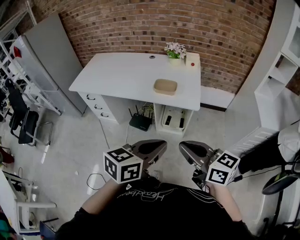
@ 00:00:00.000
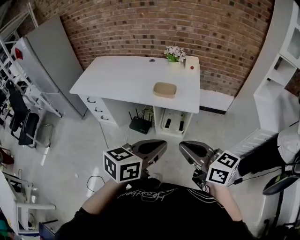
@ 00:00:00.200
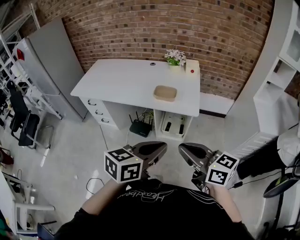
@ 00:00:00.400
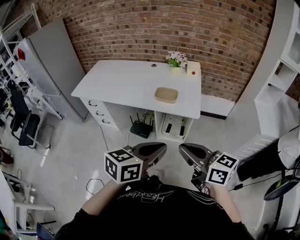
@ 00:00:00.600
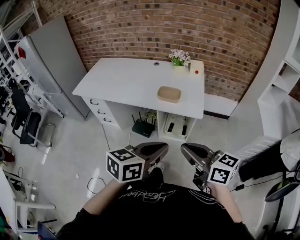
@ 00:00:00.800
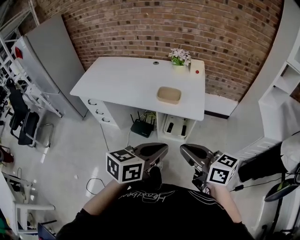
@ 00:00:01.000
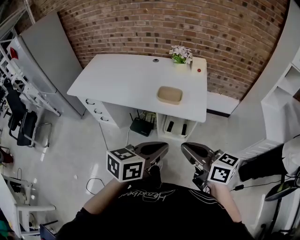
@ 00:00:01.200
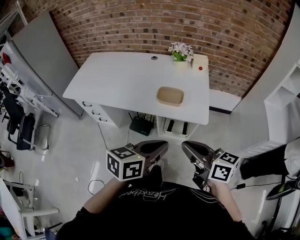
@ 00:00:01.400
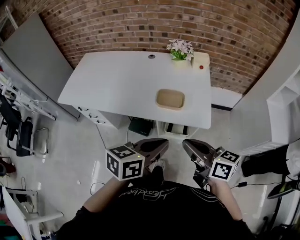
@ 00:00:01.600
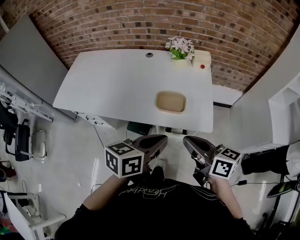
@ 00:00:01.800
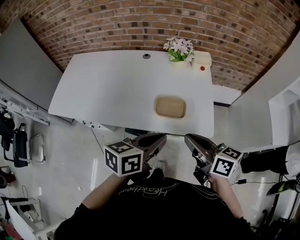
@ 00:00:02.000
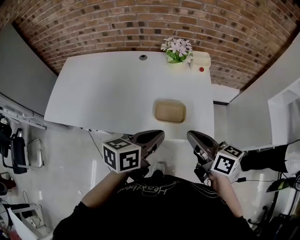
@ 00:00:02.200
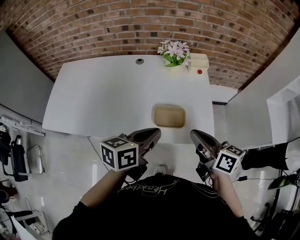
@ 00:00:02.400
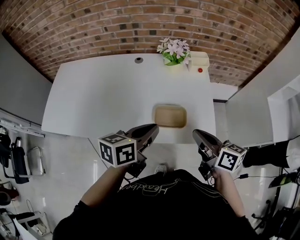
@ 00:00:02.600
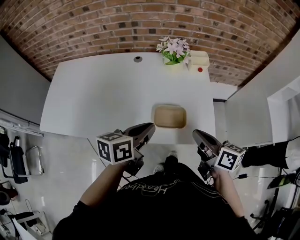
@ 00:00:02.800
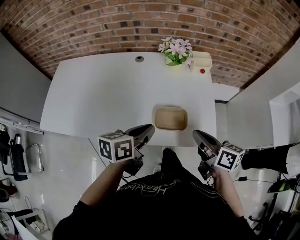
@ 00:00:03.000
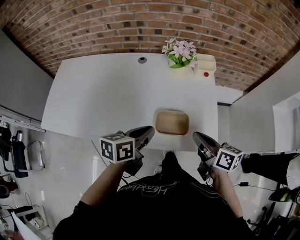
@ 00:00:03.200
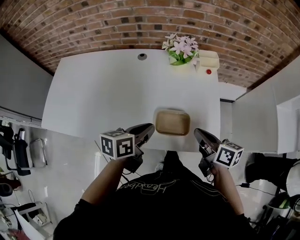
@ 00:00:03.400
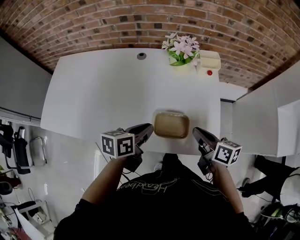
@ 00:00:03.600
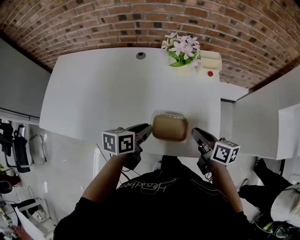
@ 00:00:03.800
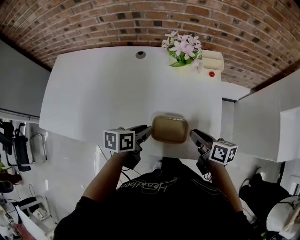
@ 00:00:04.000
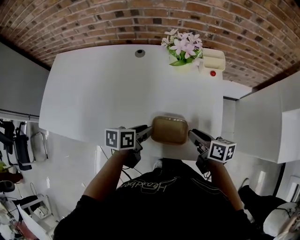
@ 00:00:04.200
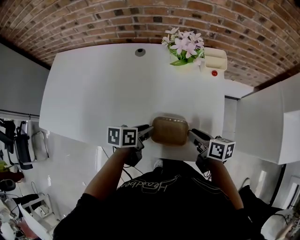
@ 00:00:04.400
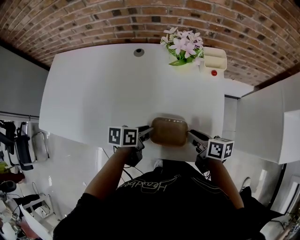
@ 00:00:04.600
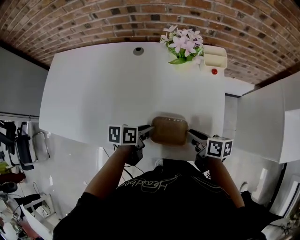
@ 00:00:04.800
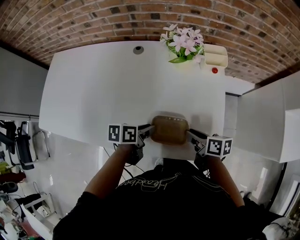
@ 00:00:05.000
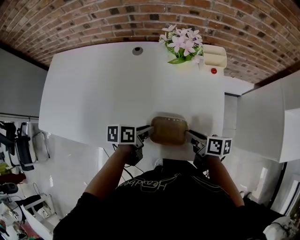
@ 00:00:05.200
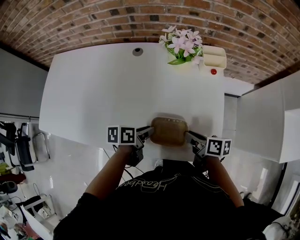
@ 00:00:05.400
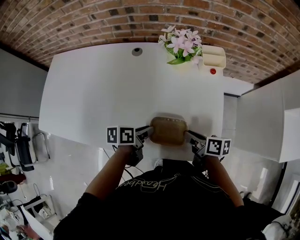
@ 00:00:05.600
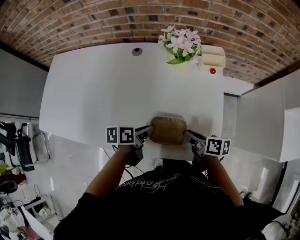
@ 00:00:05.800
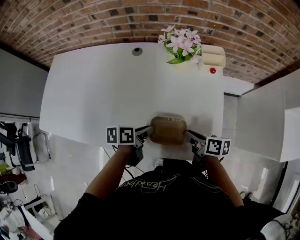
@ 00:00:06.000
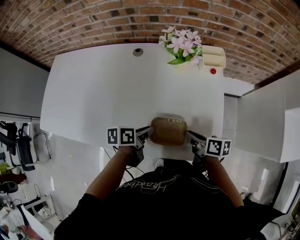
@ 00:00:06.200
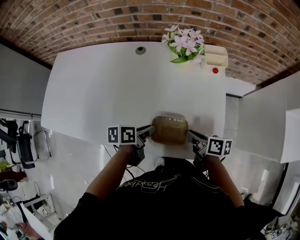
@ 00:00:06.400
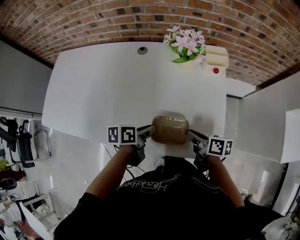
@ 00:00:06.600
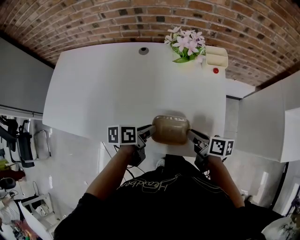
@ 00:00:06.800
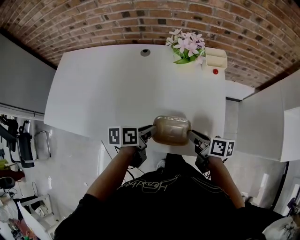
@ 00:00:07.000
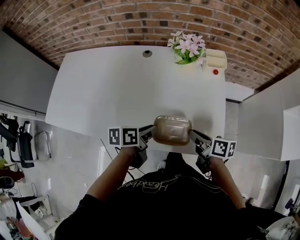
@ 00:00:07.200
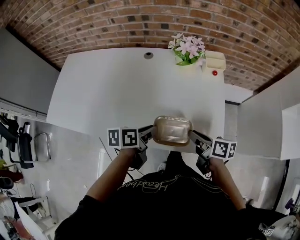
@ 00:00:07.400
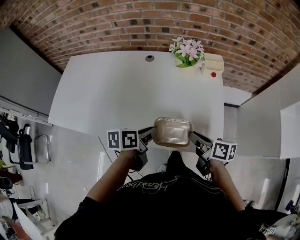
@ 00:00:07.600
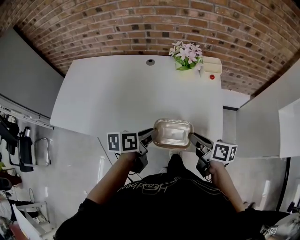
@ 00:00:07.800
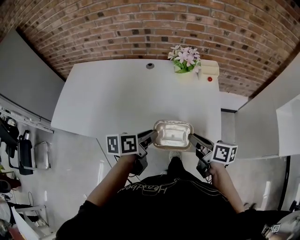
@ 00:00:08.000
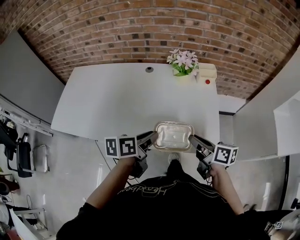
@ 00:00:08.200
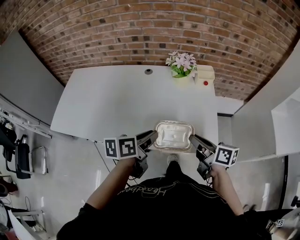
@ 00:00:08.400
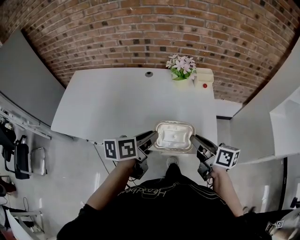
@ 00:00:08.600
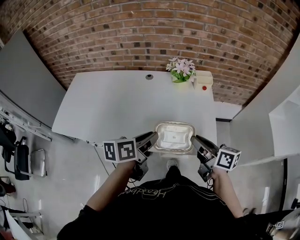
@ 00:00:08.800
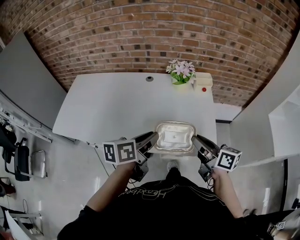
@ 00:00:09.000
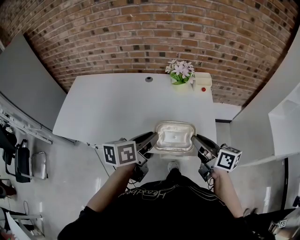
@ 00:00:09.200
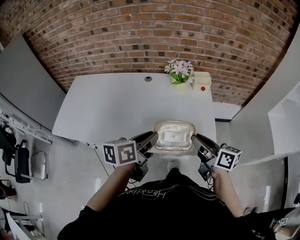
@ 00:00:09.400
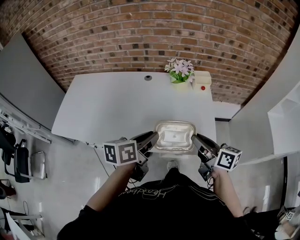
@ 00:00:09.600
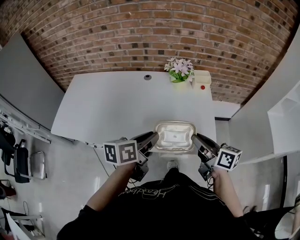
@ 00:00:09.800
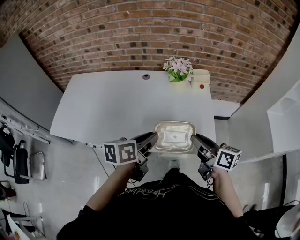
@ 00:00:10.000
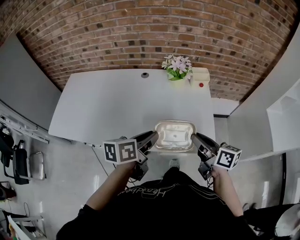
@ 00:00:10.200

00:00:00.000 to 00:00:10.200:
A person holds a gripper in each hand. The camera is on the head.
00:00:00.000 to 00:00:01.400: The two grippers go roughly 15 cm forward.
00:00:01.400 to 00:00:03.000: Both grippers travel together forward, roughly 25 cm. The right gripper rotates some 30 degrees.
00:00:03.000 to 00:00:04.400: The grippers both shift downward and forward by approximately 15 cm. The right gripper opens up. Meanwhile the left gripper turns by some 20 degrees, and opens up.
00:00:04.400 to 00:00:05.800: The grippers make only small movements.
00:00:05.800 to 00:00:07.200: The left gripper goes approximately 5 cm upward. The right gripper changes place by some 5 cm.
00:00:07.200 to 00:00:08.800: Both grippers move upward and backward, some 15 cm. The right gripper changes its angle by approximately 20 degrees.
00:00:08.800 to 00:00:10.200: The grippers stay close to where they were, moving slightly.

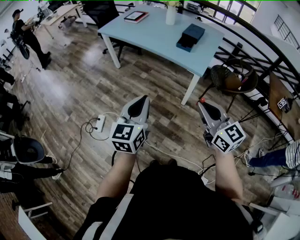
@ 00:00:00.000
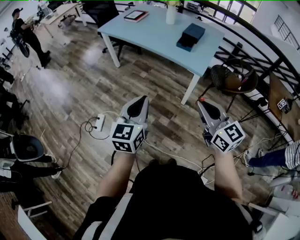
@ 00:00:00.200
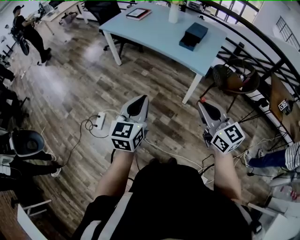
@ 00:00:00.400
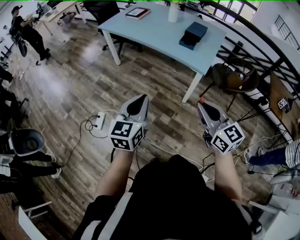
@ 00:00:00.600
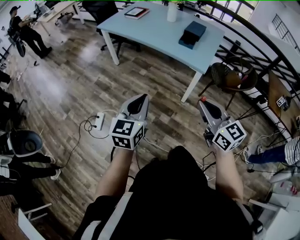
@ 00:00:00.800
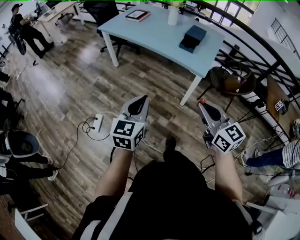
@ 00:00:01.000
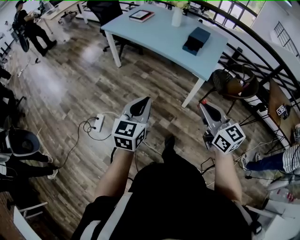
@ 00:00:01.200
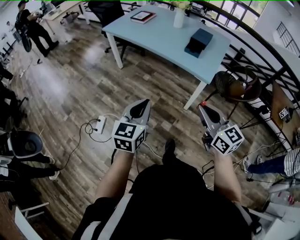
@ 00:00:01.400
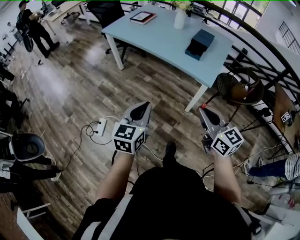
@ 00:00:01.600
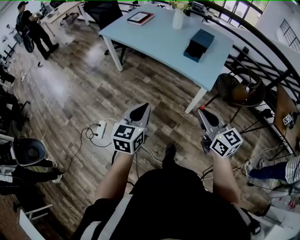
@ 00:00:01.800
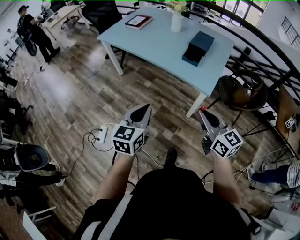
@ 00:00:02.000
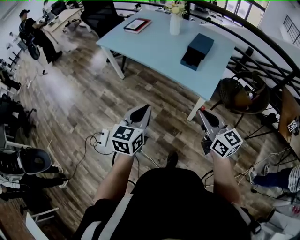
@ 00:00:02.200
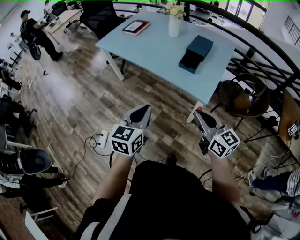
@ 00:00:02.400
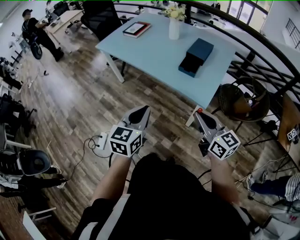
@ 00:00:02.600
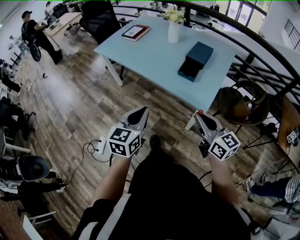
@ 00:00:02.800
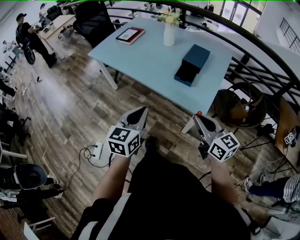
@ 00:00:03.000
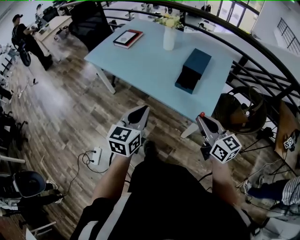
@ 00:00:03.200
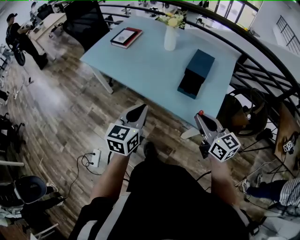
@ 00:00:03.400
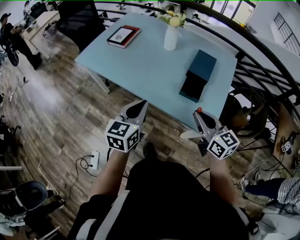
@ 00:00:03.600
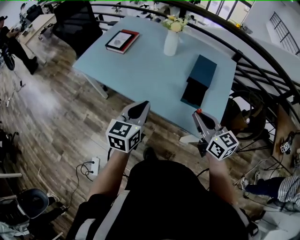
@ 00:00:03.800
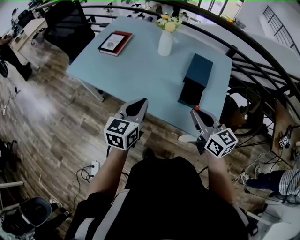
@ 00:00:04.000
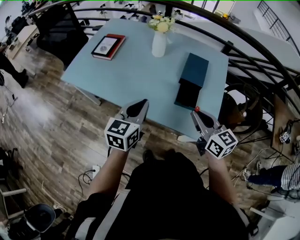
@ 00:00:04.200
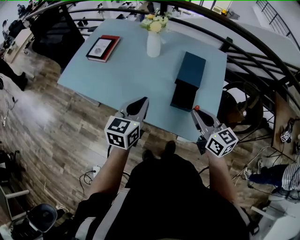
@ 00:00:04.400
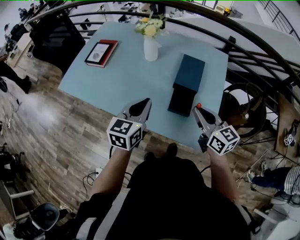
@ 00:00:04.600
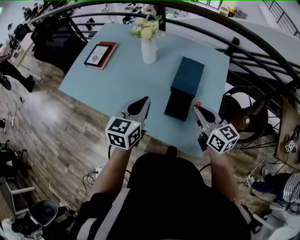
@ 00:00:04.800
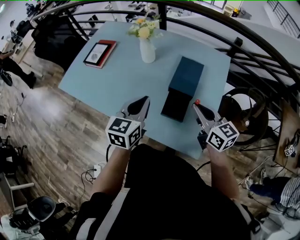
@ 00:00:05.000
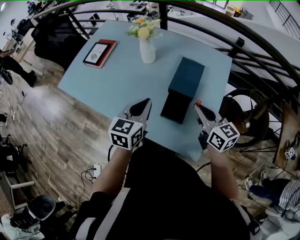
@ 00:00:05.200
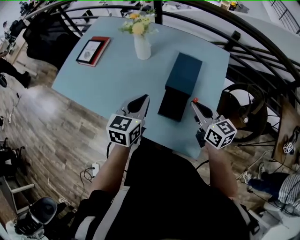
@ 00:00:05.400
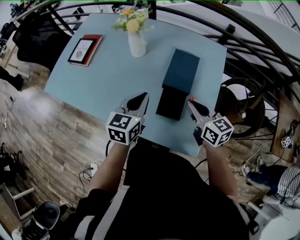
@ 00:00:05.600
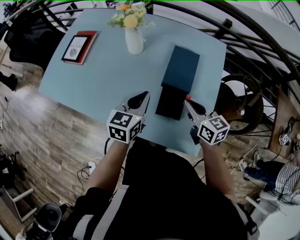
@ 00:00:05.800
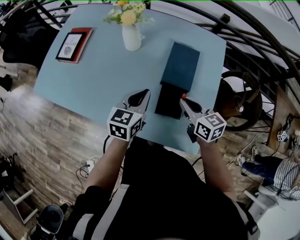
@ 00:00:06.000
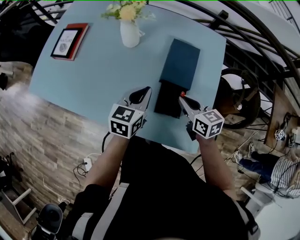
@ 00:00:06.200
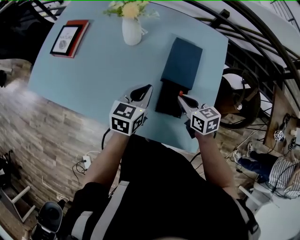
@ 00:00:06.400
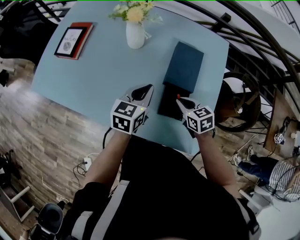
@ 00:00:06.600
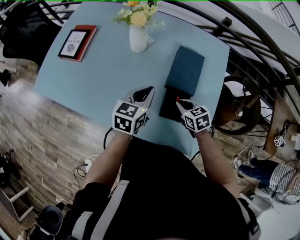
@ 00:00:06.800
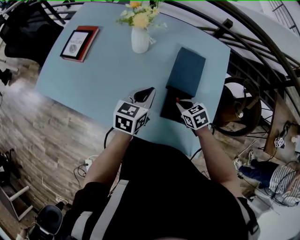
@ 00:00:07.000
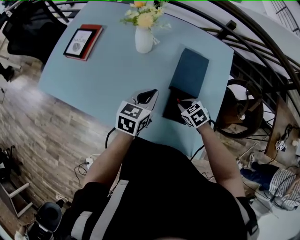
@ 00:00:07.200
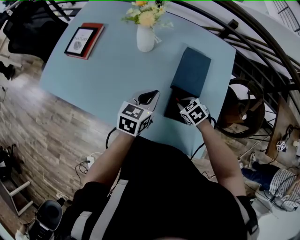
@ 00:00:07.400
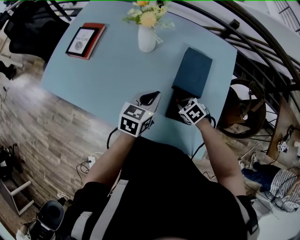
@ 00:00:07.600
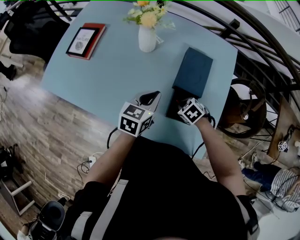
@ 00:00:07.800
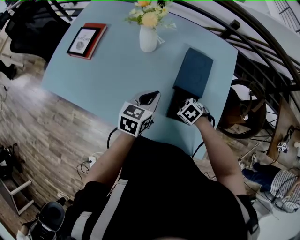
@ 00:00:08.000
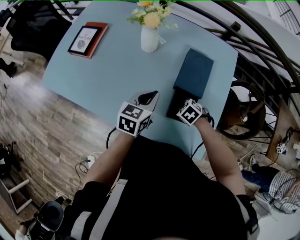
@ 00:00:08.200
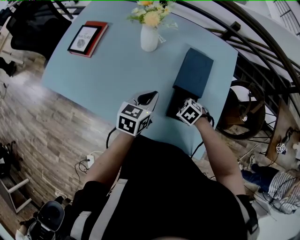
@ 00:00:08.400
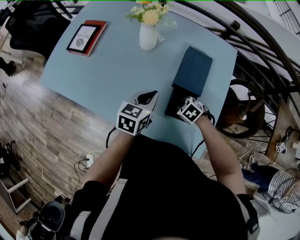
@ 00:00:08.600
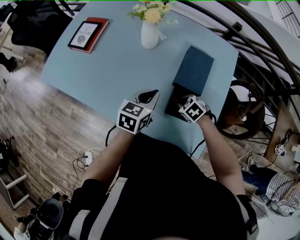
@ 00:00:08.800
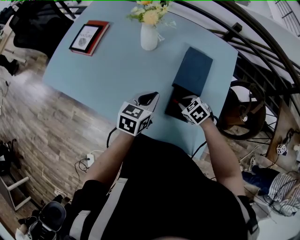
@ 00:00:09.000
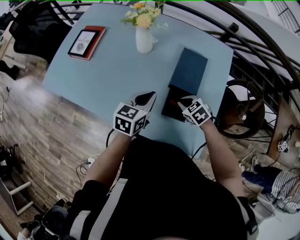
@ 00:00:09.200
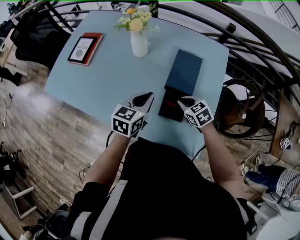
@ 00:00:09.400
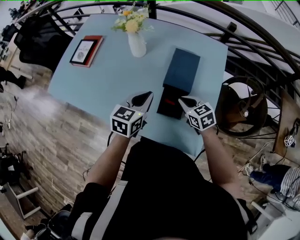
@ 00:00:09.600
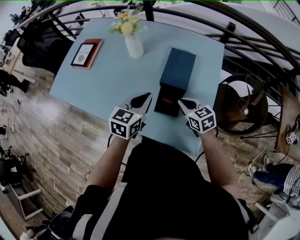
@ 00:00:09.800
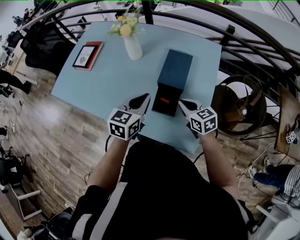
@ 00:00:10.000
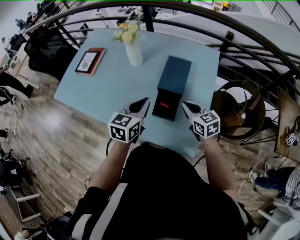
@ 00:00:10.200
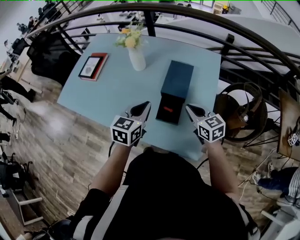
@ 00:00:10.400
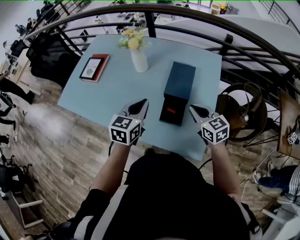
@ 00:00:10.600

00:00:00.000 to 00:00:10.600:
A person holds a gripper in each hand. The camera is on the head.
00:00:00.000 to 00:00:01.600: The left gripper moves forward and downward, about 10 cm; the right gripper is displaced forward by roughly 10 cm.
00:00:01.600 to 00:00:03.000: Both grippers move forward and to the right, about 25 cm.
00:00:03.000 to 00:00:04.600: The grippers both shift forward by about 30 cm.
00:00:04.600 to 00:00:06.000: The right gripper travels downward and forward by approximately 15 cm. Meanwhile the left gripper is displaced forward, downward and to the right by about 15 cm.
00:00:06.000 to 00:00:07.600: The right gripper heads downward, covering approximately 15 cm, and tips its fingers downward by some 40 degrees.
00:00:07.600 to 00:00:09.000: The grippers move only a little.
00:00:09.000 to 00:00:10.600: The right gripper travels upward and to the right by some 20 cm, and points its fingers approximately 40 degrees further upward. Meanwhile the left gripper shifts roughly 10 cm upward.

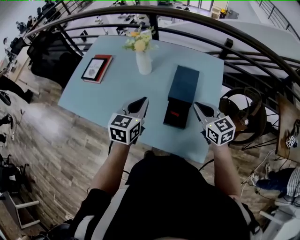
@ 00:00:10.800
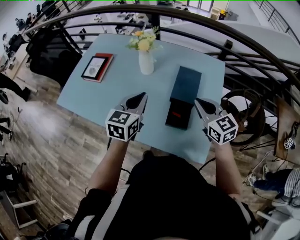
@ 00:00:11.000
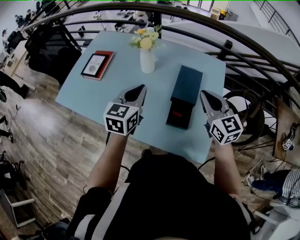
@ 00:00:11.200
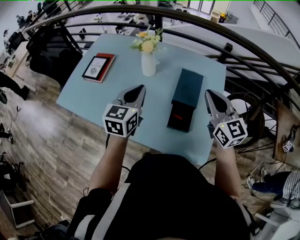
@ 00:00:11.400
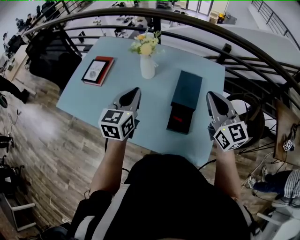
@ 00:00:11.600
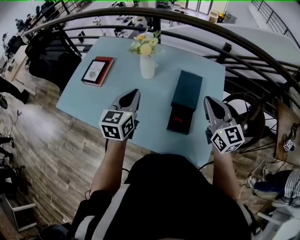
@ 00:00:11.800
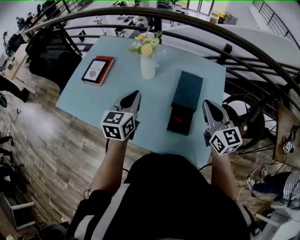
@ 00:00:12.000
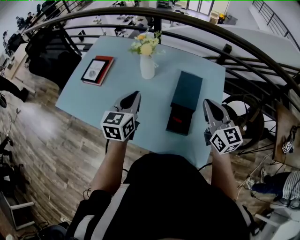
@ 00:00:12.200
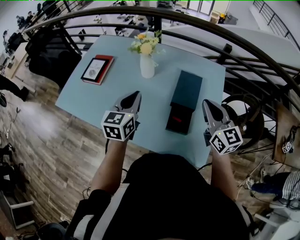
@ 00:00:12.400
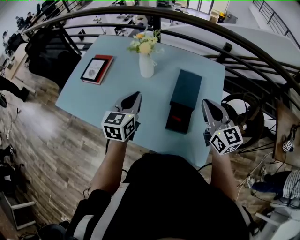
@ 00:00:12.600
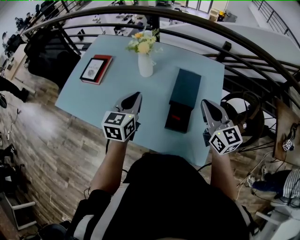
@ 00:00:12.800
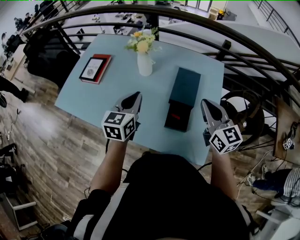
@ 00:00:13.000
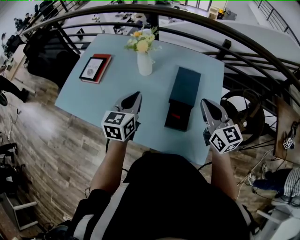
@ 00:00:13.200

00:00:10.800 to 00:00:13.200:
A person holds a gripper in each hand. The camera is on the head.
00:00:10.800 to 00:00:12.000: The right gripper moves upward, approximately 10 cm; the left gripper moves to the left, roughly 5 cm.
00:00:12.000 to 00:00:13.200: The grippers stay close to where they were, moving slightly.
